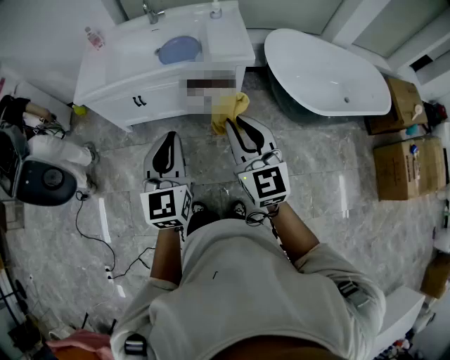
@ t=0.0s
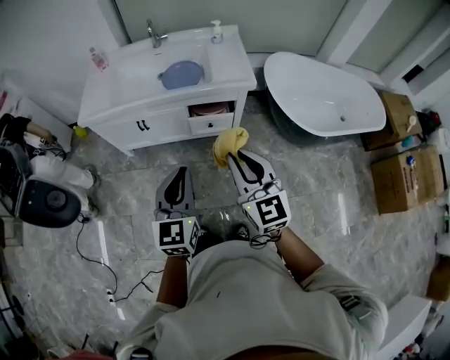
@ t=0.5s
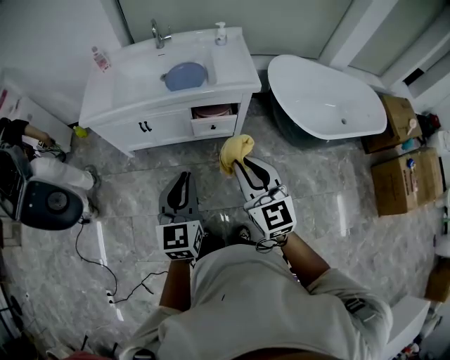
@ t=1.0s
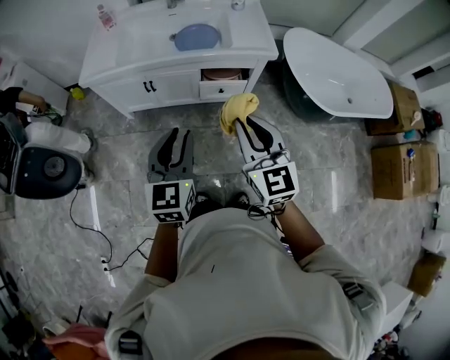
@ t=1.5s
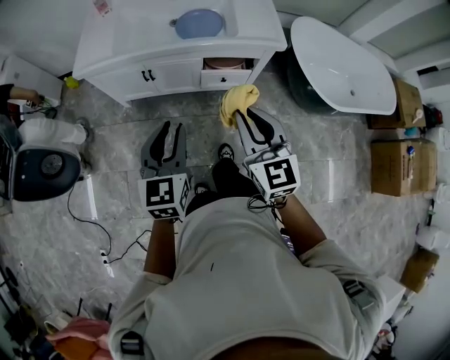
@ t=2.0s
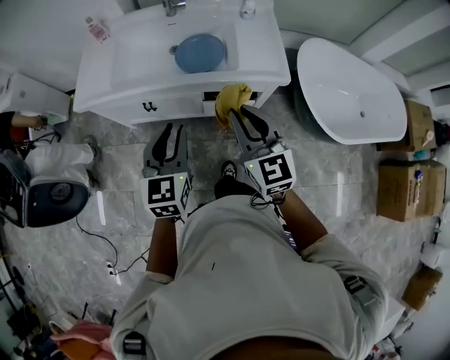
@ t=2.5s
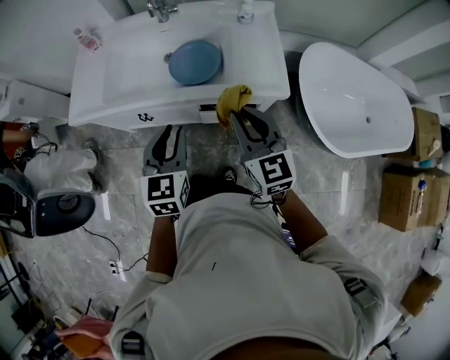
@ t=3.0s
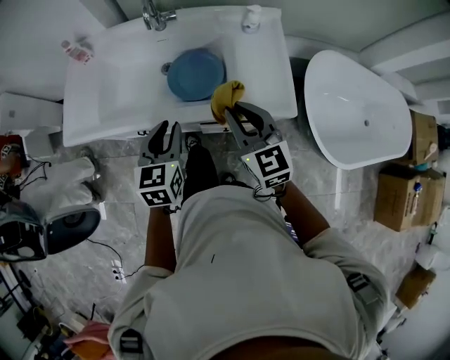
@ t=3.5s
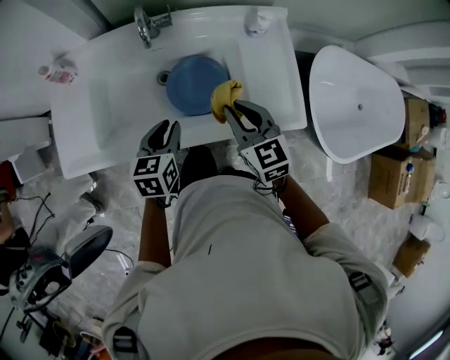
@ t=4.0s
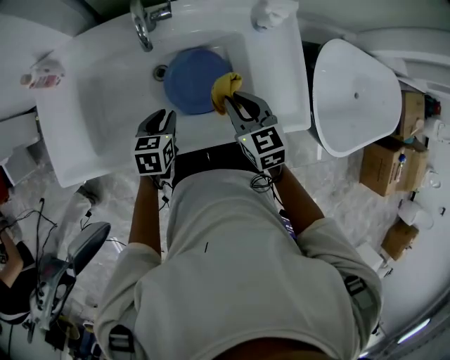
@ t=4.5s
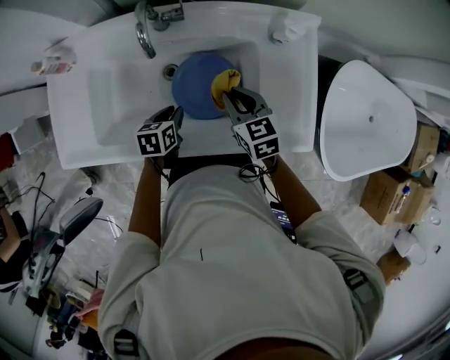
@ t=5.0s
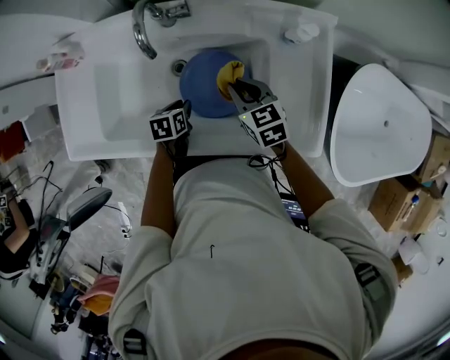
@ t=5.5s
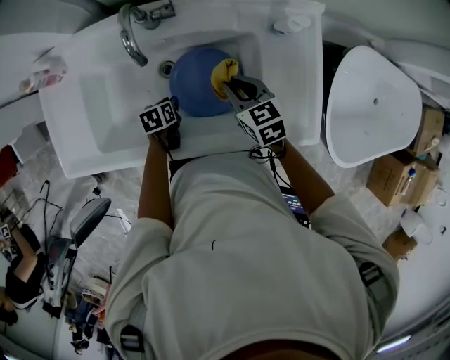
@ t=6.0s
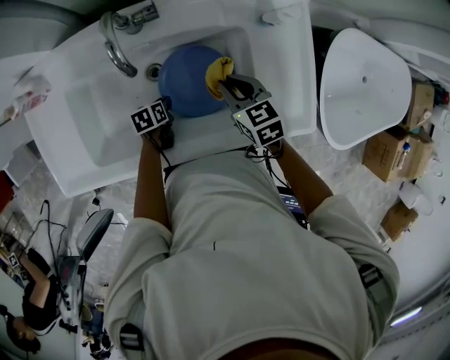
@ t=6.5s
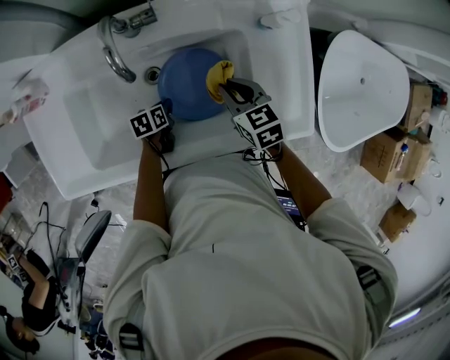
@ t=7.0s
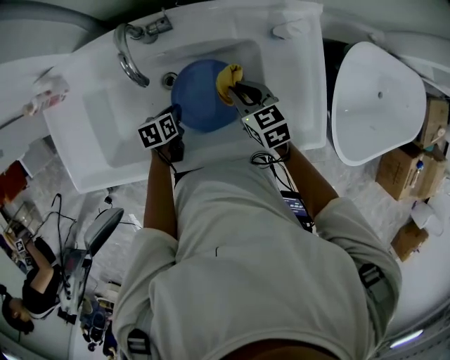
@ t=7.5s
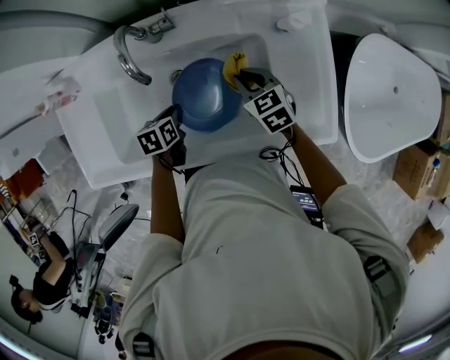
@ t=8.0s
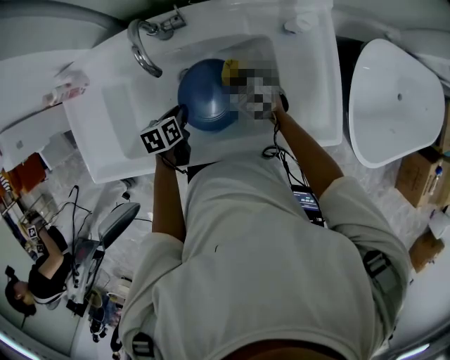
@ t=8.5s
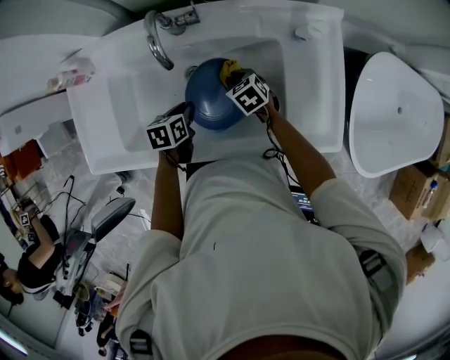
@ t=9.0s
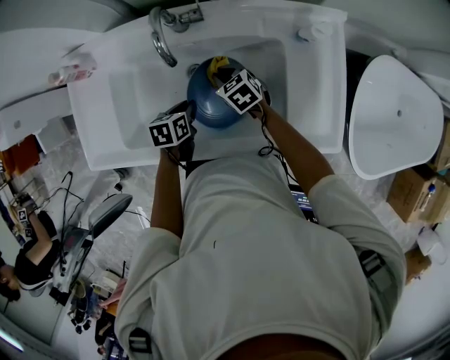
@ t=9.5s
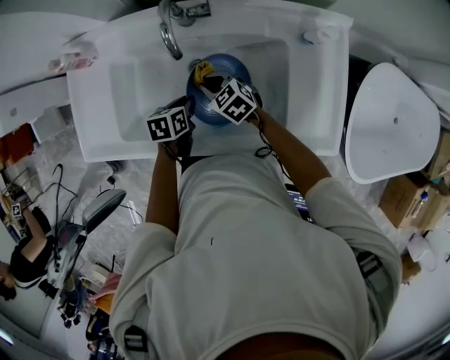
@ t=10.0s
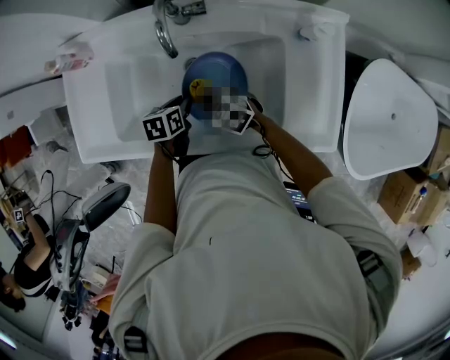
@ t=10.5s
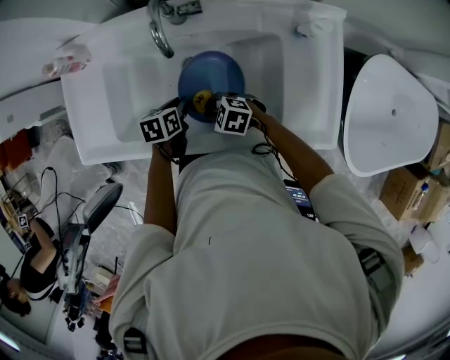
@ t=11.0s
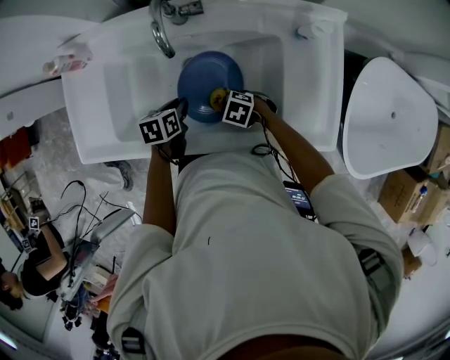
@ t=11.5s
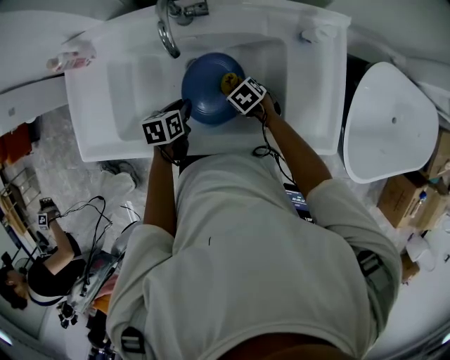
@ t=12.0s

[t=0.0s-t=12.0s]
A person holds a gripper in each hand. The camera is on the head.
t=0.0s to t=2.0s: The two grippers go approximately 15 cm to the left, downward and forward.
t=2.0s to t=4.0s: The two grippers travel together, forward, some 50 cm. The left gripper rotates about 30 degrees.
t=4.0s to t=6.0s: The grippers both shift downward and forward by roughly 25 cm. The left gripper turns by some 40 degrees.
t=6.0s to t=8.0s: The left gripper is displaced upward by about 10 cm.
t=8.0s to t=10.0s: The right gripper moves to the left, roughly 15 cm, and rotates roughly 20 degrees.
t=10.0s to t=12.0s: The right gripper shifts by some 15 cm, and rotates about 30 degrees.

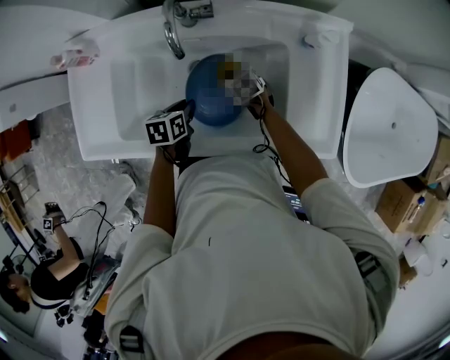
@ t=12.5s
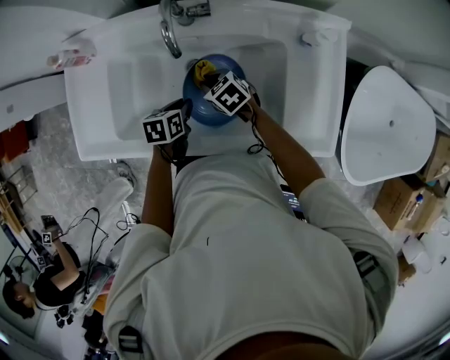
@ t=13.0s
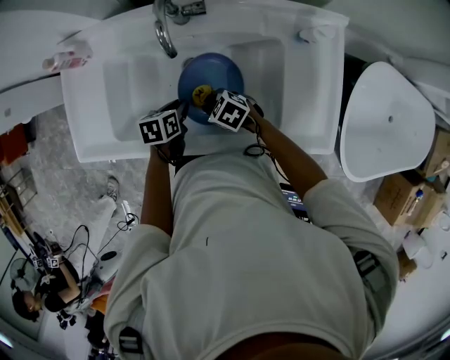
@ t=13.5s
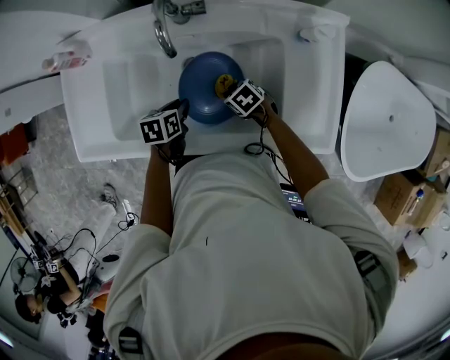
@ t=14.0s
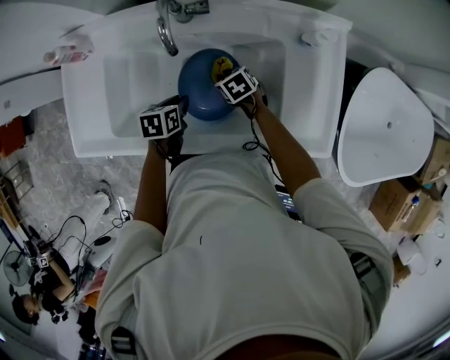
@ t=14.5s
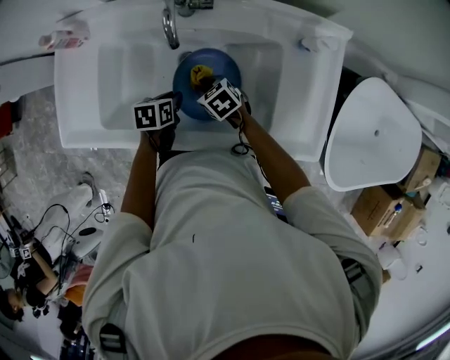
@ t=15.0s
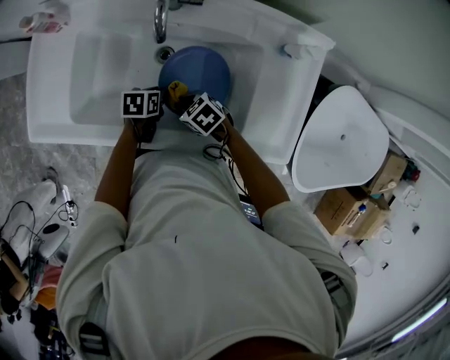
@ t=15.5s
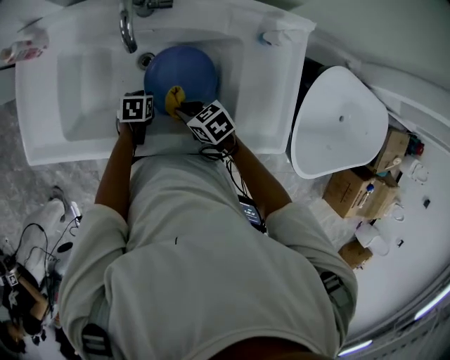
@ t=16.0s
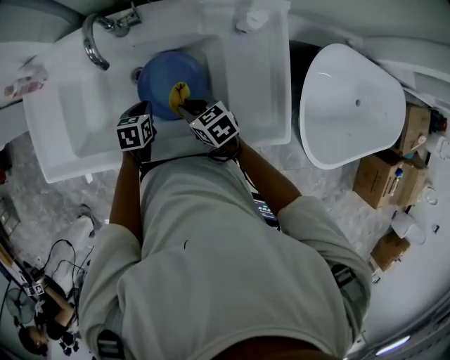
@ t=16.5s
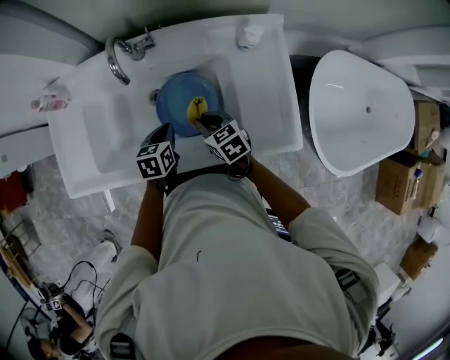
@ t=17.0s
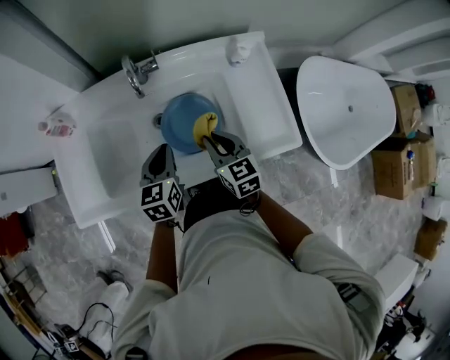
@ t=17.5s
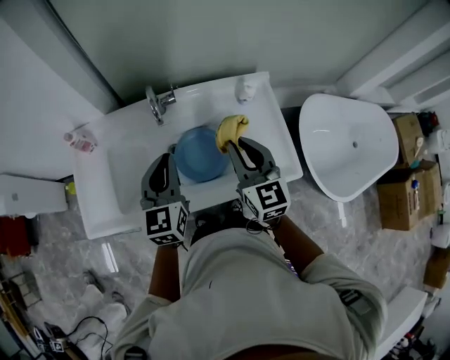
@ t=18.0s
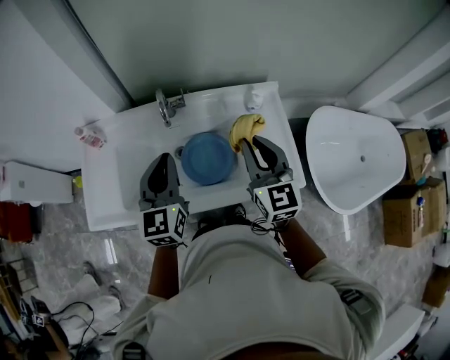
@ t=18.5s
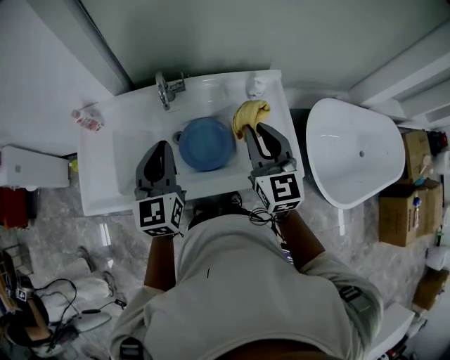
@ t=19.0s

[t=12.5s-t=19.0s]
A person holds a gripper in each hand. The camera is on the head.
t=14.5s to t=17.0s: The left gripper ends up roughly 10 cm from where it was. Meanwhile the right gripper moves upward, approximately 10 cm, and changes its angle by about 20 degrees.
t=17.0s to t=19.0s: The grippers both shift upward by approximately 30 cm. The right gripper angles its fingers upward, by roughly 30 degrees, while the left gripper angles its fingers upward, by some 40 degrees.

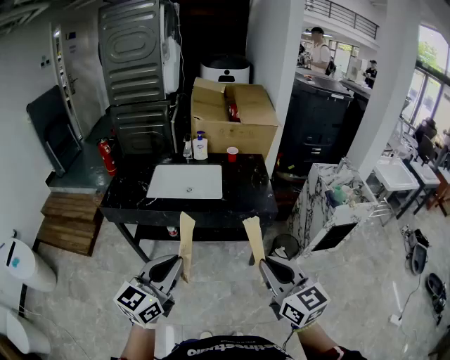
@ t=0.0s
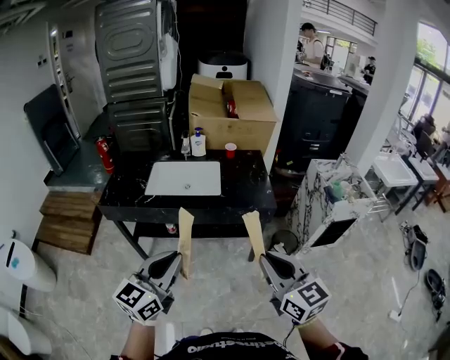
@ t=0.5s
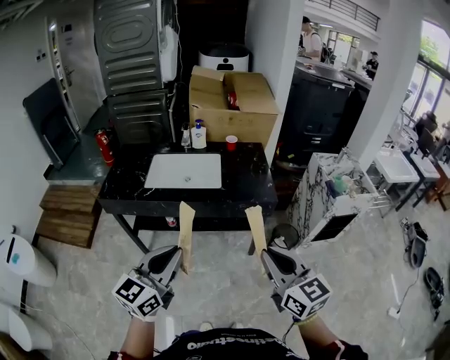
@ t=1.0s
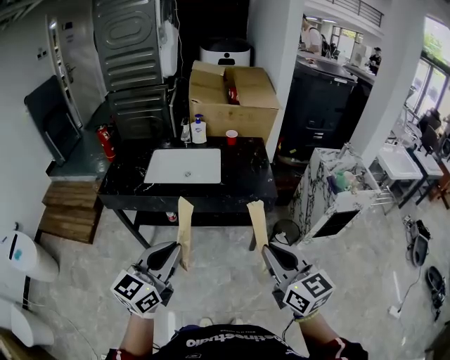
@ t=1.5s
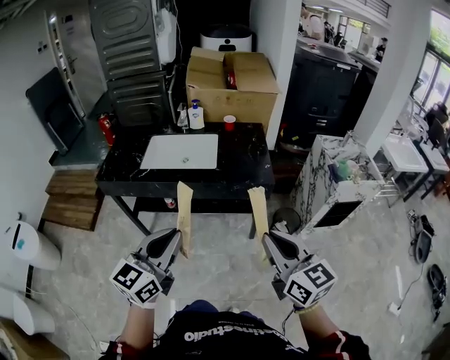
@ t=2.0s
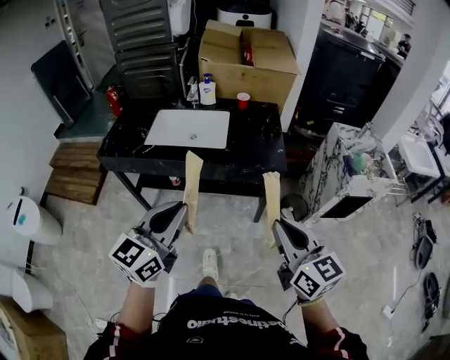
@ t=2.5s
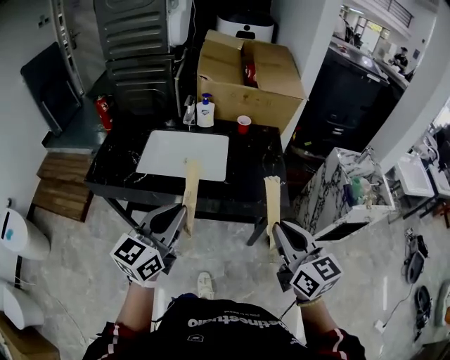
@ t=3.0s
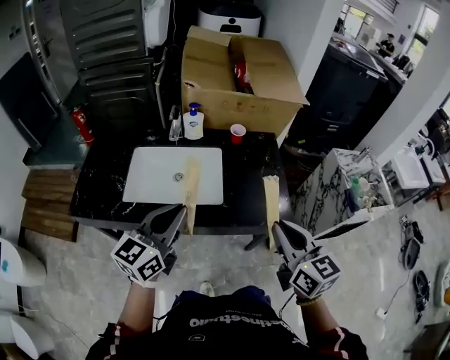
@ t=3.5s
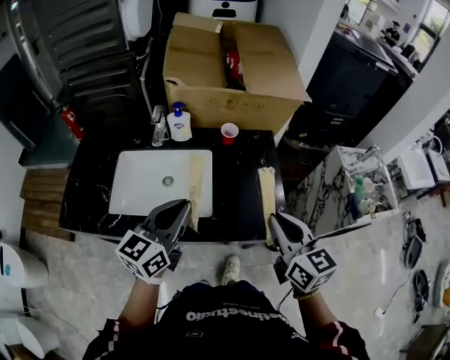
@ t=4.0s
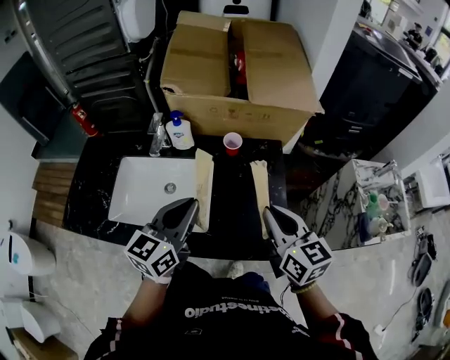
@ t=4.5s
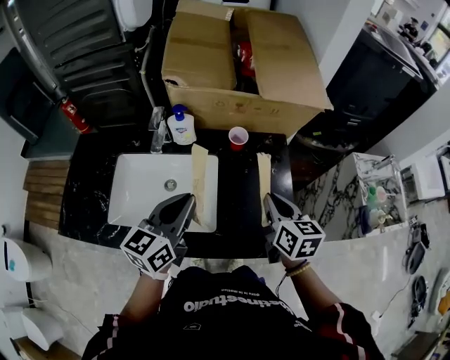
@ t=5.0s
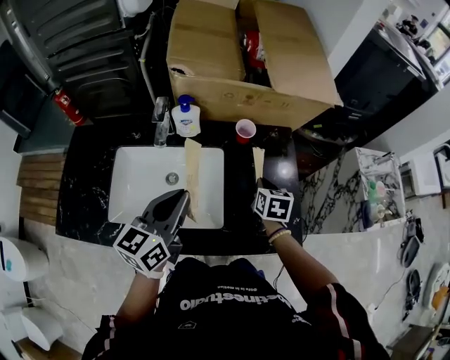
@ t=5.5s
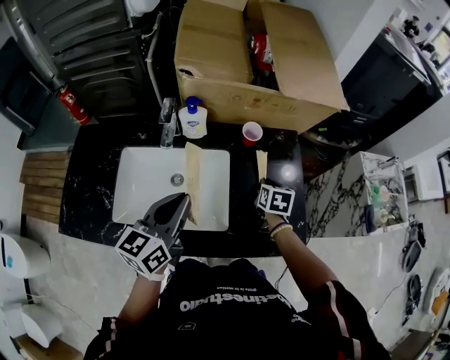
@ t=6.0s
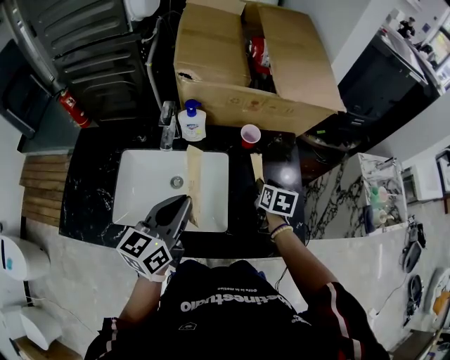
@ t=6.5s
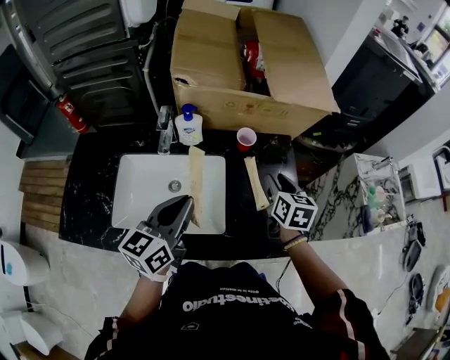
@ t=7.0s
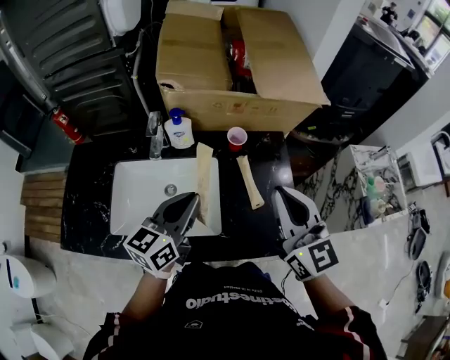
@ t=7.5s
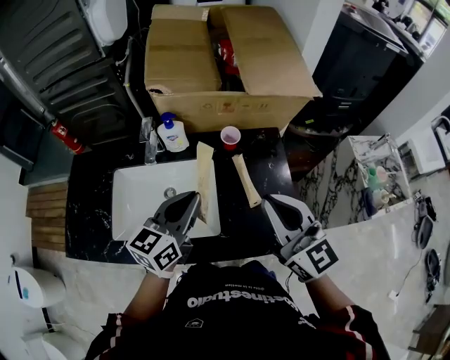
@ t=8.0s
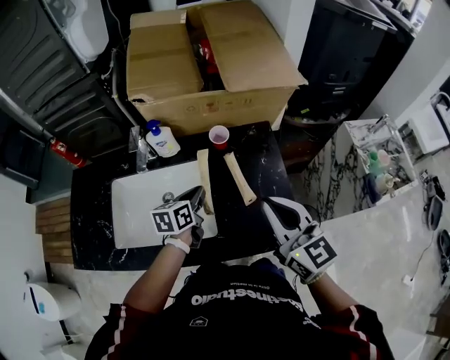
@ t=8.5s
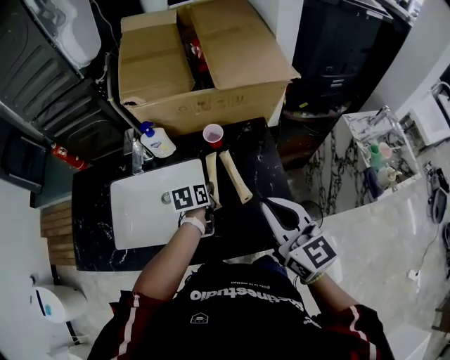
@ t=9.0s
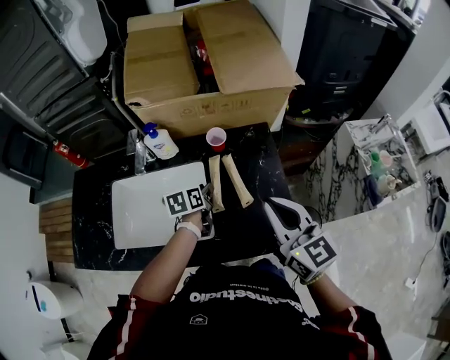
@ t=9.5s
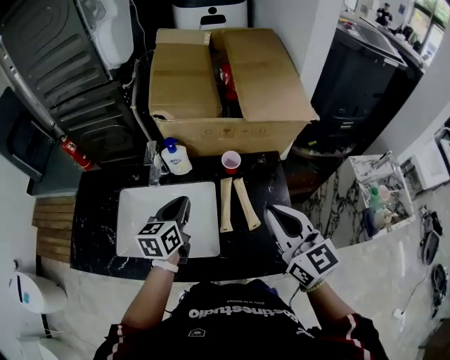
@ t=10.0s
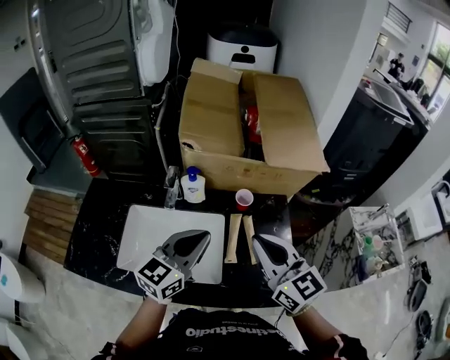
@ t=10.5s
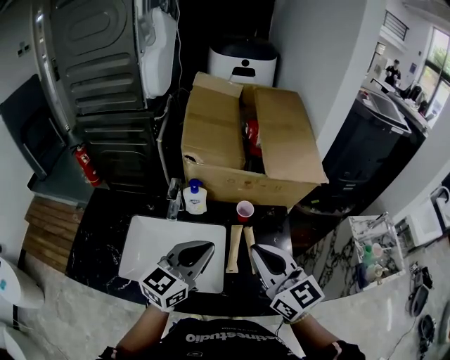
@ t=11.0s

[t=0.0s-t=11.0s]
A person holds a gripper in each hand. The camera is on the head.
t=0.0s to t=2.0s: The two grippers go some 5 cm to the right.
t=2.0s to t=3.5s: Both grippers travel together forward, about 35 cm.
t=3.5s to t=5.5s: The right gripper goes approximately 40 cm forward and downward, and tips its fingers downward by some 30 degrees. The left gripper is displaced forward by approximately 20 cm.
t=5.5s to t=7.5s: The right gripper goes roughly 25 cm upward, tilts its fingers approximately 40 degrees upward, and opens and closes again.
t=7.5s to t=9.0s: The right gripper heads downward and to the right, covering about 10 cm. The left gripper heads downward, forward and to the right, covering roughly 25 cm, and points its fingers approximately 40 degrees further downward.
t=9.0s to t=11.0s: The right gripper travels to the left and upward by approximately 15 cm, while the left gripper is displaced upward by roughly 25 cm, angles its fingers upward, by about 50 degrees, and opens, then closes once more.